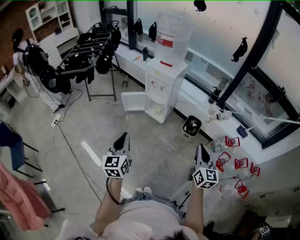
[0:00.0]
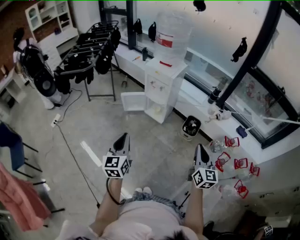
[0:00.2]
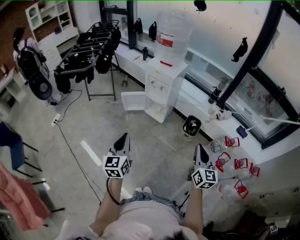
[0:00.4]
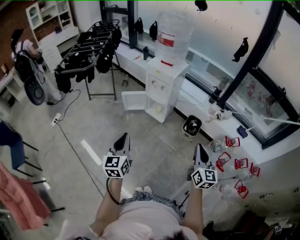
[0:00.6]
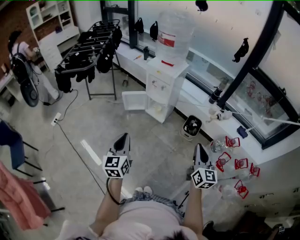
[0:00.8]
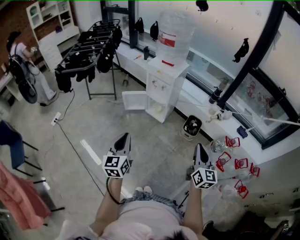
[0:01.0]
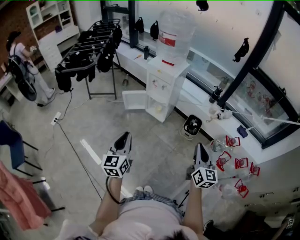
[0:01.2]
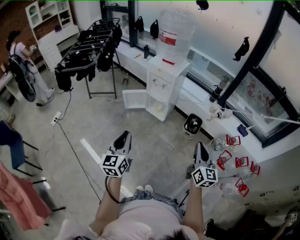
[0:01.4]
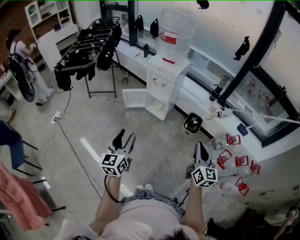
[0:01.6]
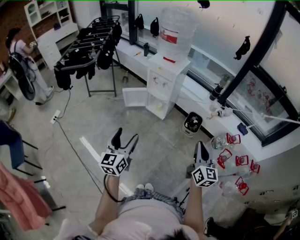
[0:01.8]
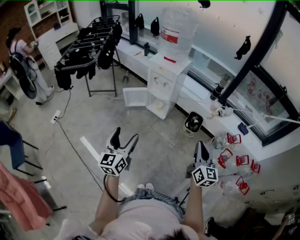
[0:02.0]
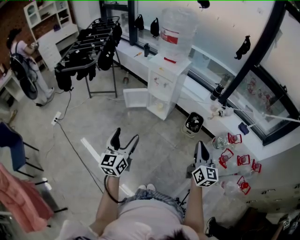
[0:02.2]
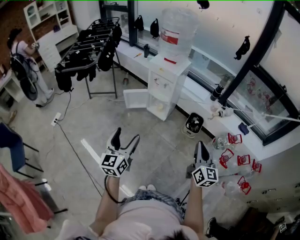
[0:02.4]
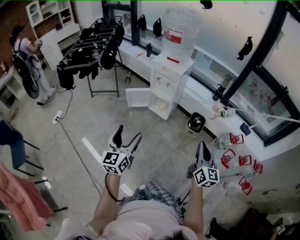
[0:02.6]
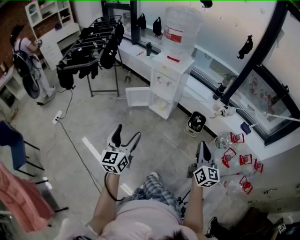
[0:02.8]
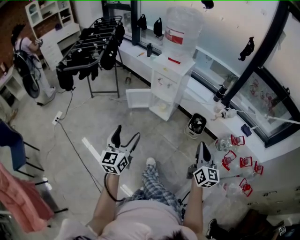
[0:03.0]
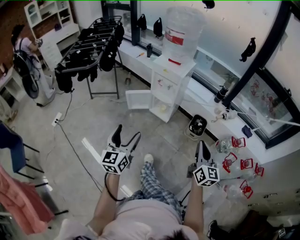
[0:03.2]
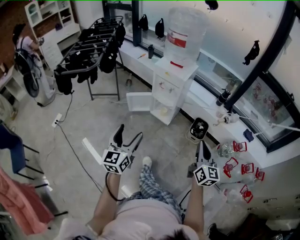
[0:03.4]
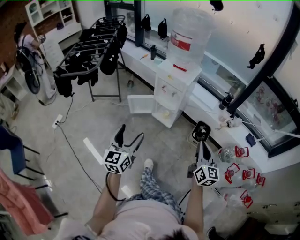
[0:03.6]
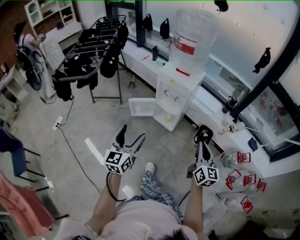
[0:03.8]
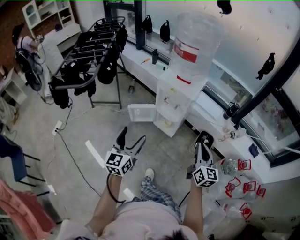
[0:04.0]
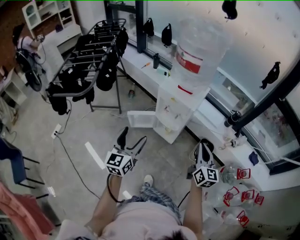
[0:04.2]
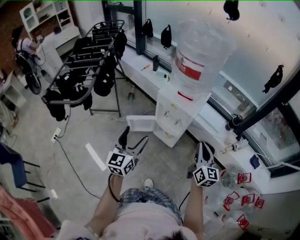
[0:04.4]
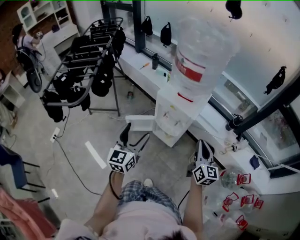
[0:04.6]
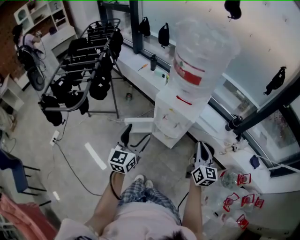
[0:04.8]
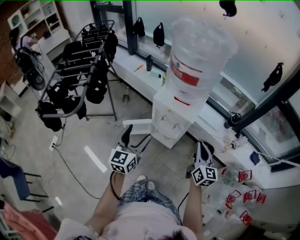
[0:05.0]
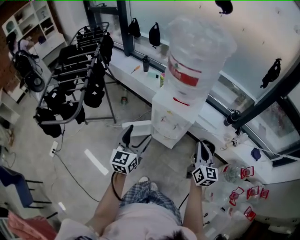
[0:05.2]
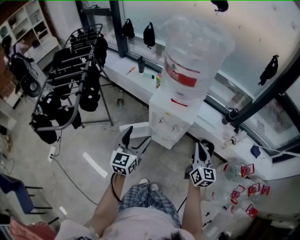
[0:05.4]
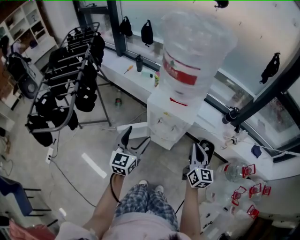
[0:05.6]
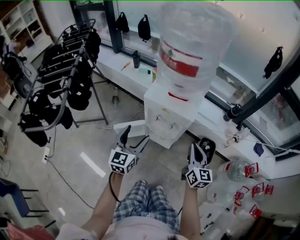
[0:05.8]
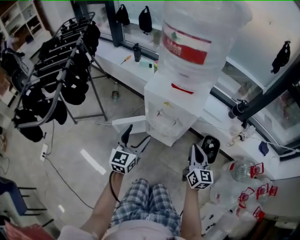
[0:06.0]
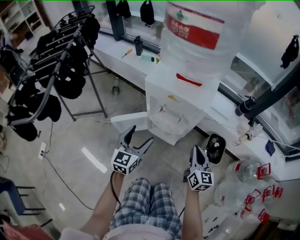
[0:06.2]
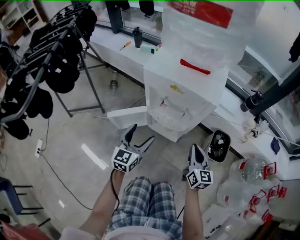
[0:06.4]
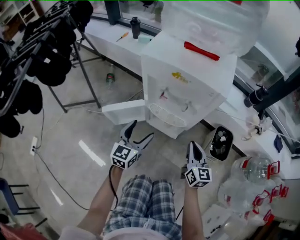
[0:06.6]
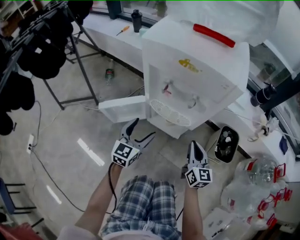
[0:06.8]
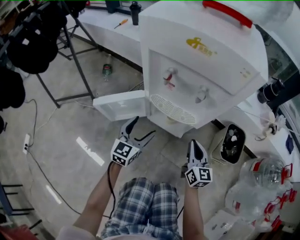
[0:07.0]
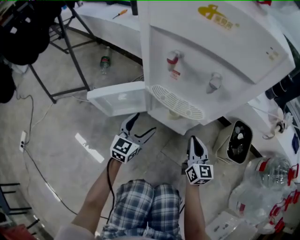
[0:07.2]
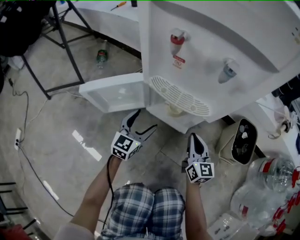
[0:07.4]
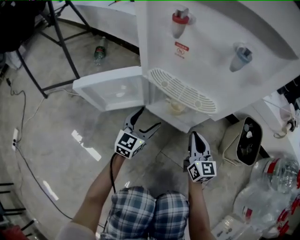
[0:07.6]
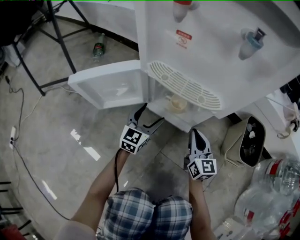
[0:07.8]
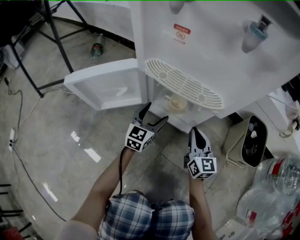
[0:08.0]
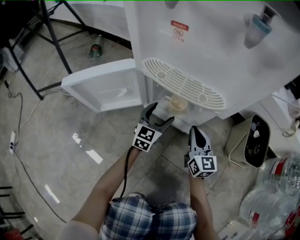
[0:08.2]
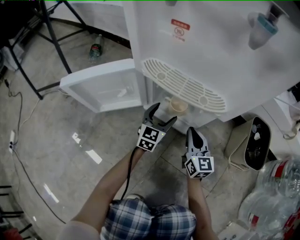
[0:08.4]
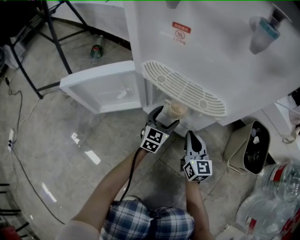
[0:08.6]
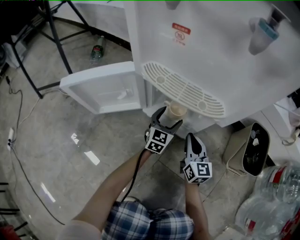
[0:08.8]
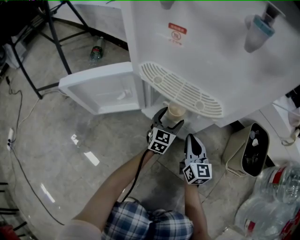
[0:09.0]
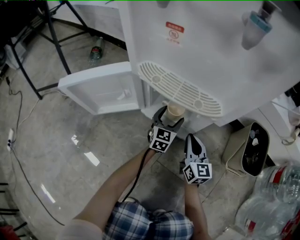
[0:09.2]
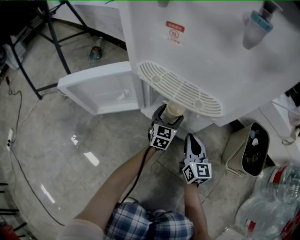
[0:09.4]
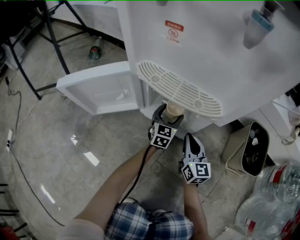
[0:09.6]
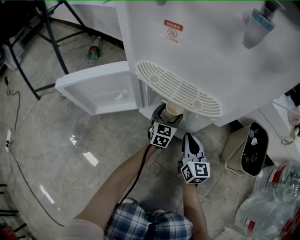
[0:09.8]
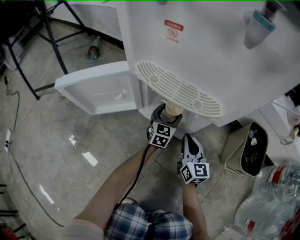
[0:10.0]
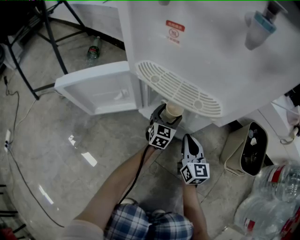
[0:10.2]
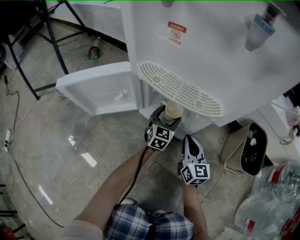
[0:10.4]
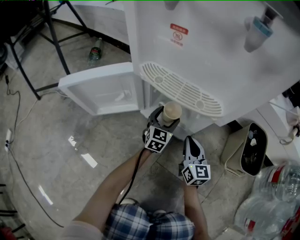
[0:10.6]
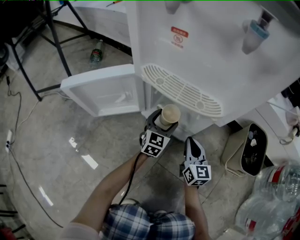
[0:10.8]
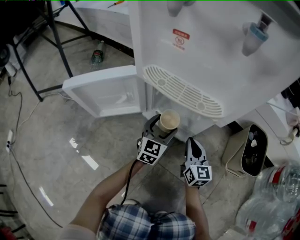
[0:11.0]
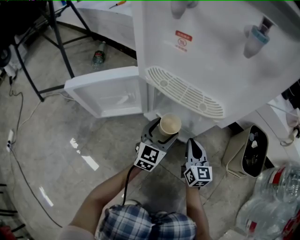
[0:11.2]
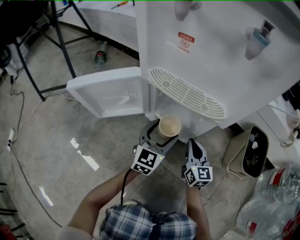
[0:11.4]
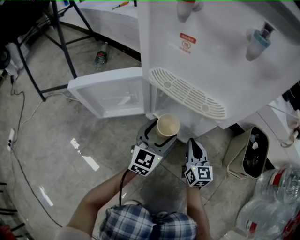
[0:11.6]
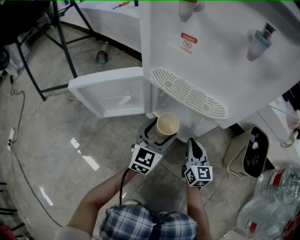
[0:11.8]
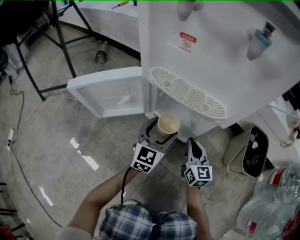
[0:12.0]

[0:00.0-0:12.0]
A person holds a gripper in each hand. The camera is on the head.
0:00.0 to 0:01.6: The left gripper opens.
0:01.6 to 0:03.0: The left gripper opens up.
0:03.0 to 0:04.4: Both grippers move forward, about 40 cm.
0:04.4 to 0:06.0: The grippers both shift downward and forward by approximately 25 cm.
0:06.0 to 0:07.6: Both grippers move downward, about 50 cm.
0:07.6 to 0:09.0: The left gripper moves downward, to the right and forward, about 20 cm; the right gripper moves downward, some 10 cm.
0:09.0 to 0:10.4: The grippers make only small movements.
0:10.4 to 0:12.0: The left gripper travels upward, backward and to the left by approximately 15 cm.

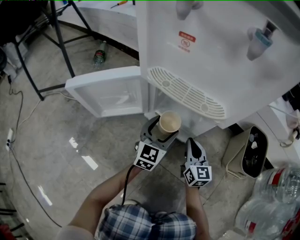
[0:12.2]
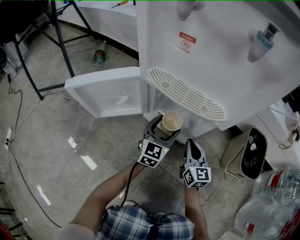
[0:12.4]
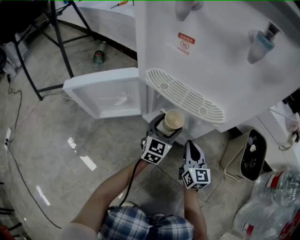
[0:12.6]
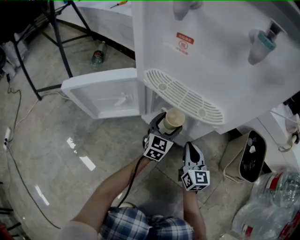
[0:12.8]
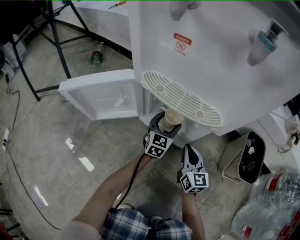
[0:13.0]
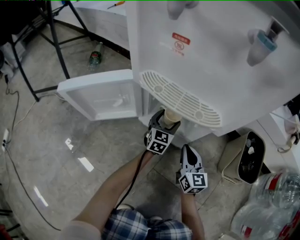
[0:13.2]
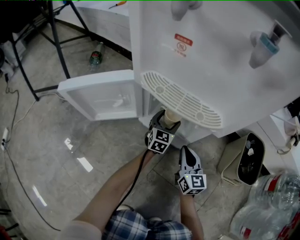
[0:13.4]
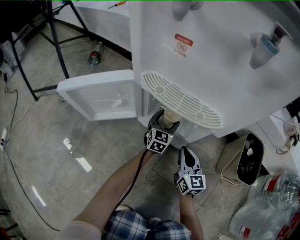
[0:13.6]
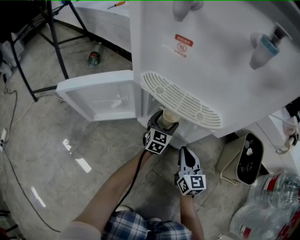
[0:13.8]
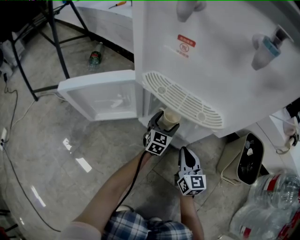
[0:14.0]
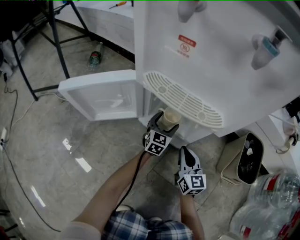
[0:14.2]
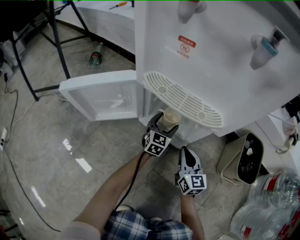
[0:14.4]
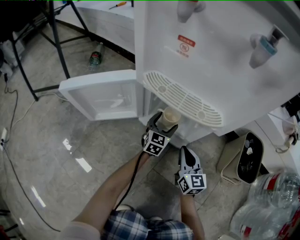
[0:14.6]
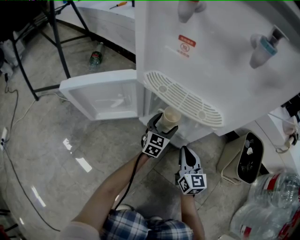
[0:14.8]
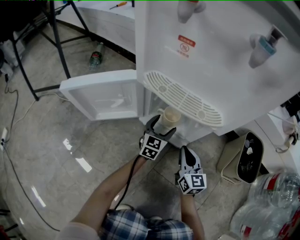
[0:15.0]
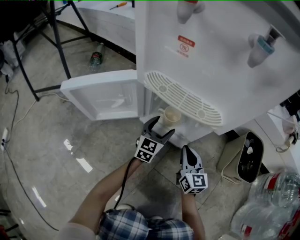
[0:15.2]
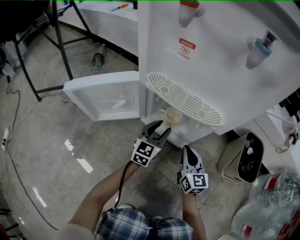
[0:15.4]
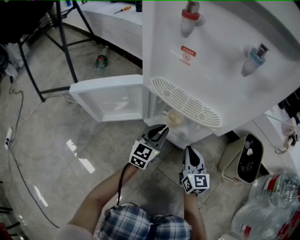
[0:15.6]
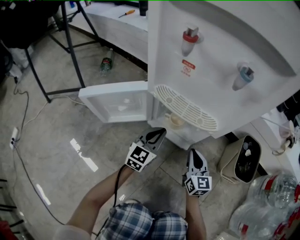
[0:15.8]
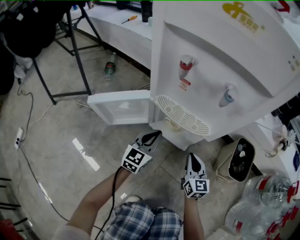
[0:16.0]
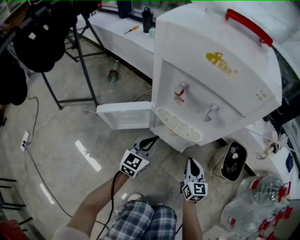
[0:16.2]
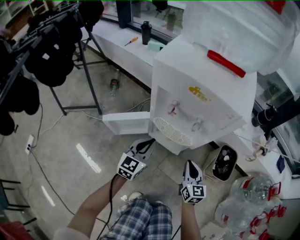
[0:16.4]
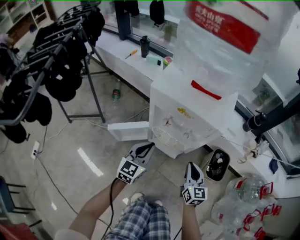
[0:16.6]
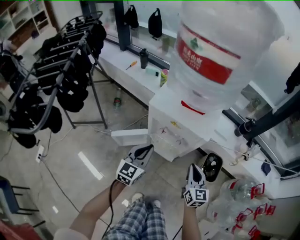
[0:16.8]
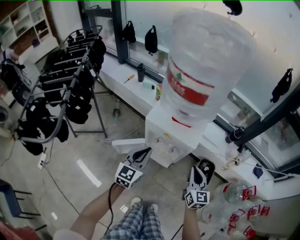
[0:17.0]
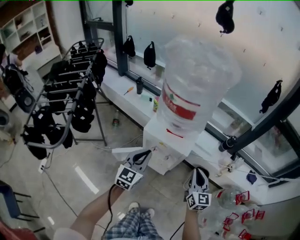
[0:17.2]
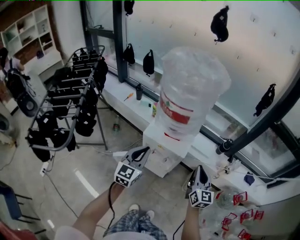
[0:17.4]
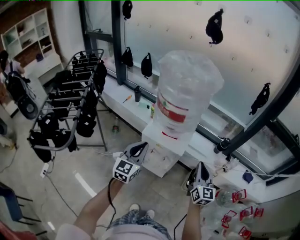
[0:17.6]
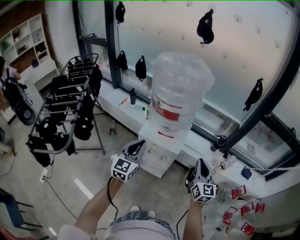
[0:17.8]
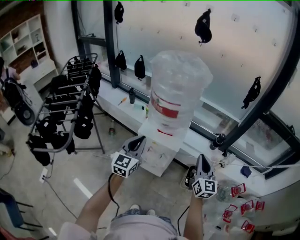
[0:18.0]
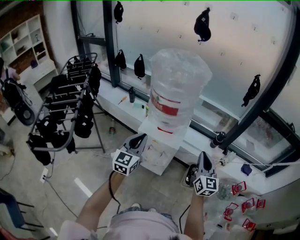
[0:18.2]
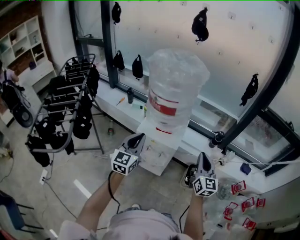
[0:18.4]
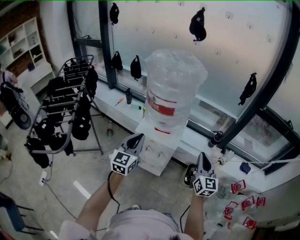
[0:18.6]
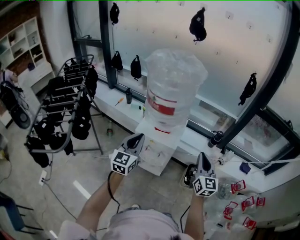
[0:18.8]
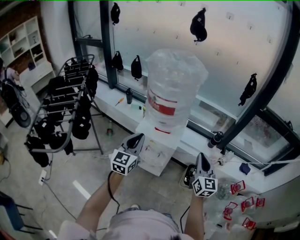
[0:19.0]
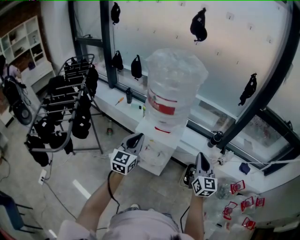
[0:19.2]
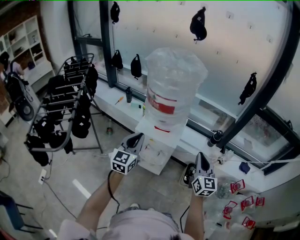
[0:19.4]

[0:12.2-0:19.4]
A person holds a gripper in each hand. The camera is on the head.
0:12.2 to 0:13.6: The left gripper heads forward and downward, covering about 15 cm.
0:13.6 to 0:15.0: The grippers make only small movements.
0:15.0 to 0:16.6: The grippers both shift upward by roughly 50 cm. The left gripper closes up.
0:16.6 to 0:18.0: Both grippers travel together upward, roughly 40 cm. The right gripper changes its angle by approximately 20 degrees.
0:18.0 to 0:19.4: The grippers stay close to where they were, moving slightly.

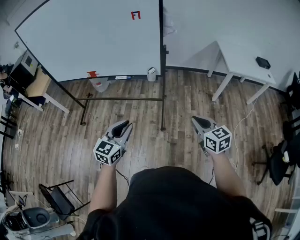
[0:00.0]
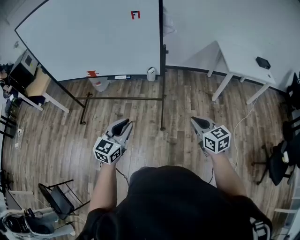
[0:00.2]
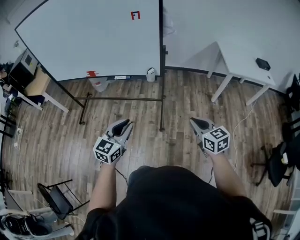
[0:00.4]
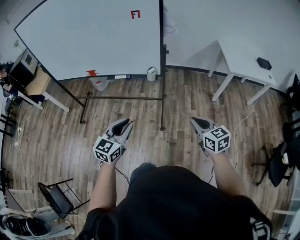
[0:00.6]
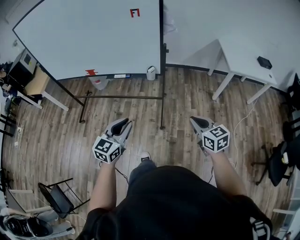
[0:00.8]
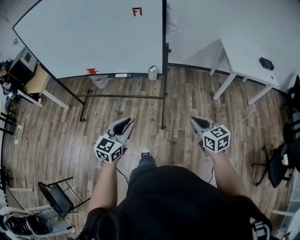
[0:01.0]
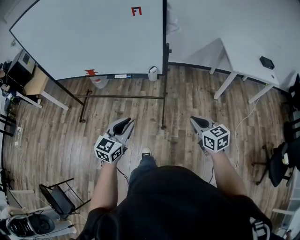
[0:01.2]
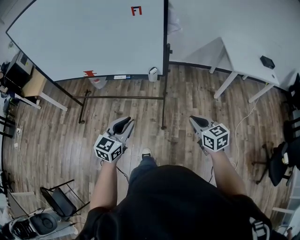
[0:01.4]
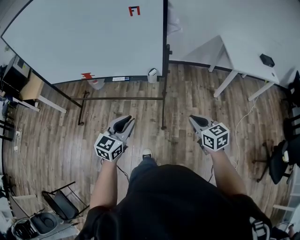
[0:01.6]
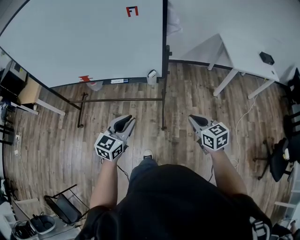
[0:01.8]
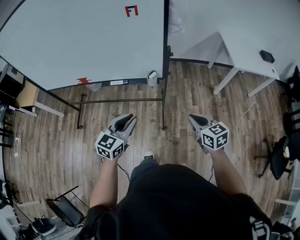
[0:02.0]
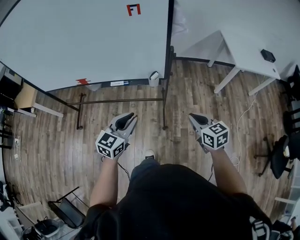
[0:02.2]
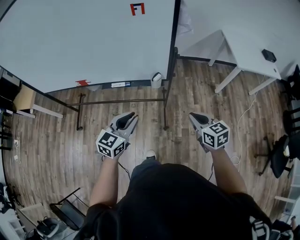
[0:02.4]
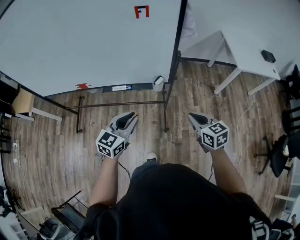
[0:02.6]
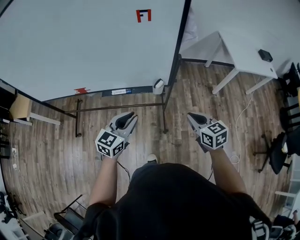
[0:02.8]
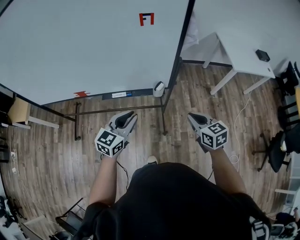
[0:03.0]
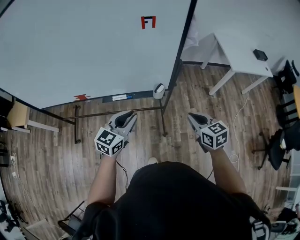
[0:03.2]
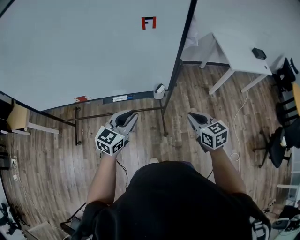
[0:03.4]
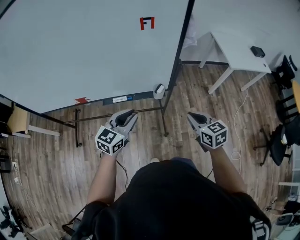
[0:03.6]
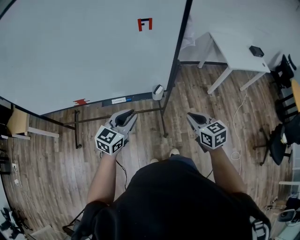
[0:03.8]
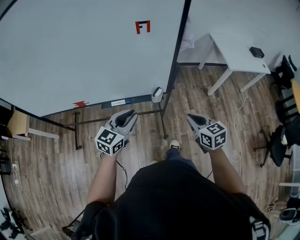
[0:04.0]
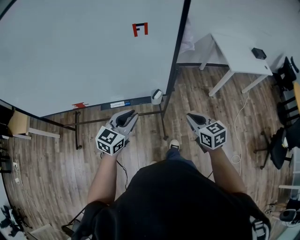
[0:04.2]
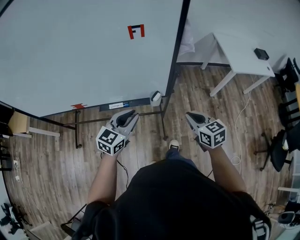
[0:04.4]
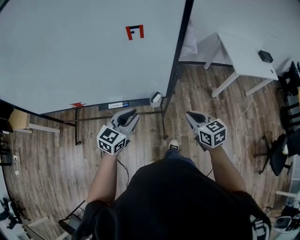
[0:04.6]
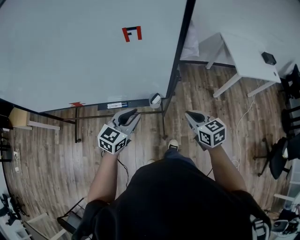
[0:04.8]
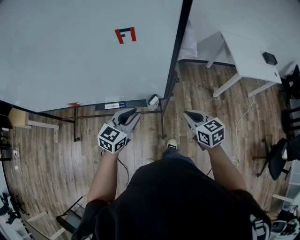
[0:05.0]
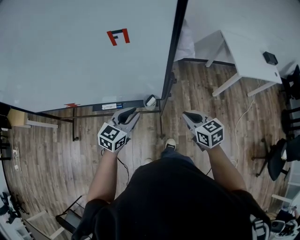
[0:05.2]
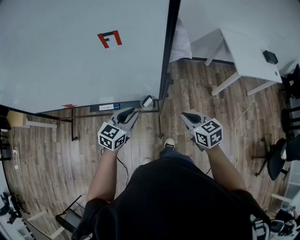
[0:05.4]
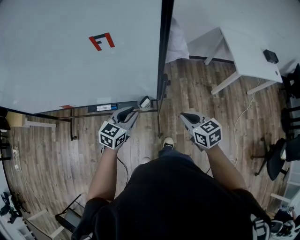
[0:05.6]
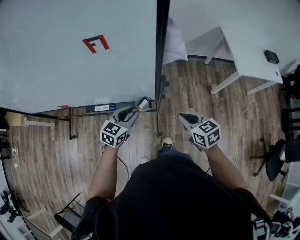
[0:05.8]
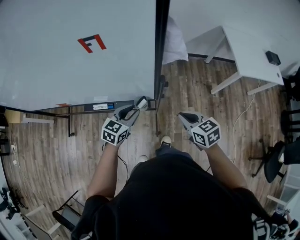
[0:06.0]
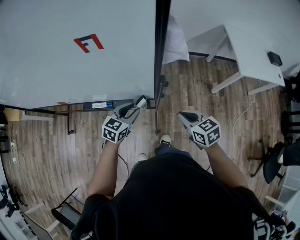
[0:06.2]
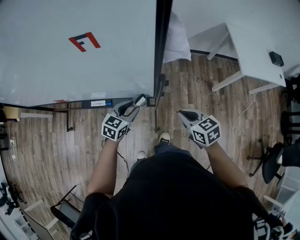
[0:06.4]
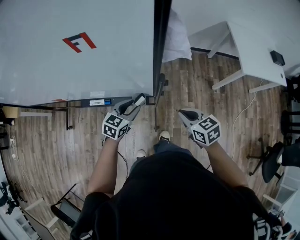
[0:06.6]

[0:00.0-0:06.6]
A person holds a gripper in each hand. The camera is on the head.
0:00.0 to 0:01.6: The grippers both shift forward by some 10 cm.
0:01.6 to 0:03.2: Both grippers move forward and to the left, some 20 cm.
0:03.2 to 0:05.0: The left gripper heads forward and to the right, covering about 15 cm; the right gripper is displaced forward by roughly 10 cm.
0:05.0 to 0:06.6: The left gripper heads downward, forward and to the right, covering approximately 15 cm, while the right gripper heads downward and forward, covering about 10 cm.
